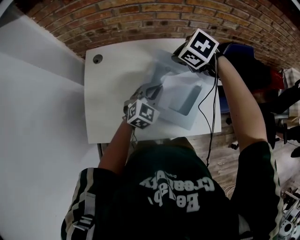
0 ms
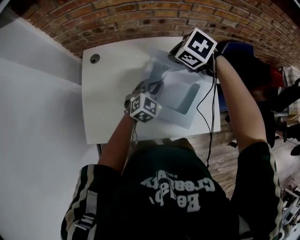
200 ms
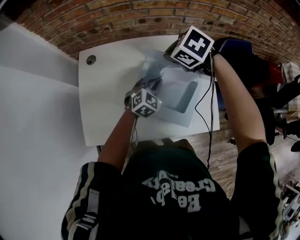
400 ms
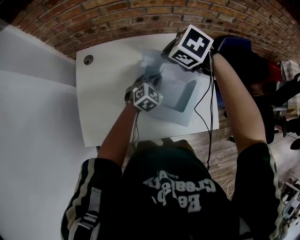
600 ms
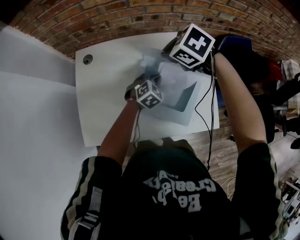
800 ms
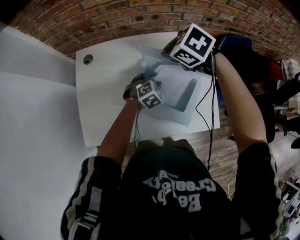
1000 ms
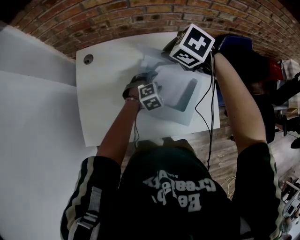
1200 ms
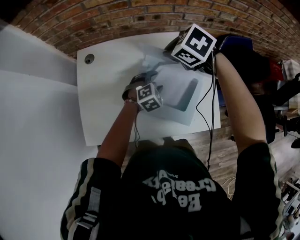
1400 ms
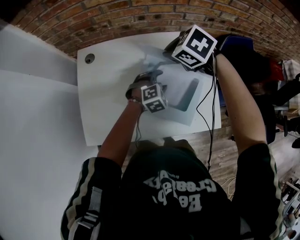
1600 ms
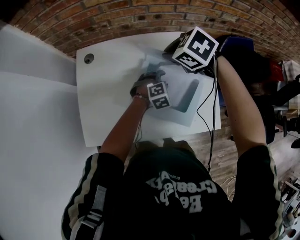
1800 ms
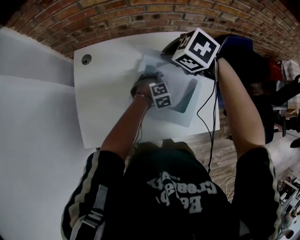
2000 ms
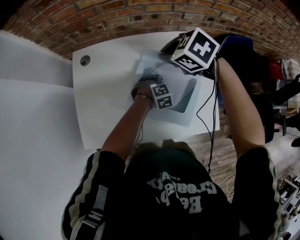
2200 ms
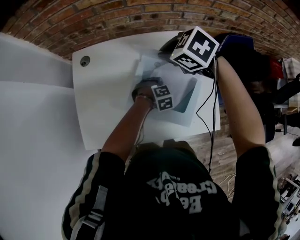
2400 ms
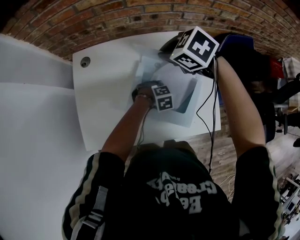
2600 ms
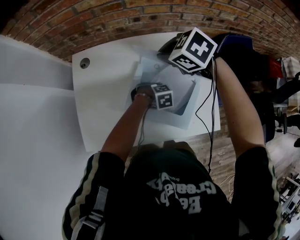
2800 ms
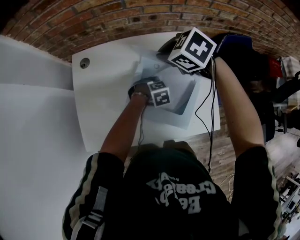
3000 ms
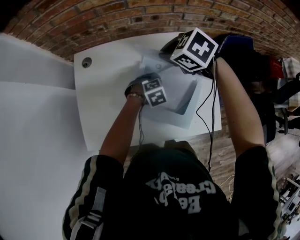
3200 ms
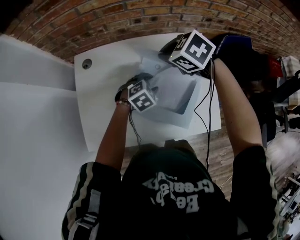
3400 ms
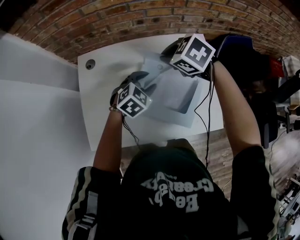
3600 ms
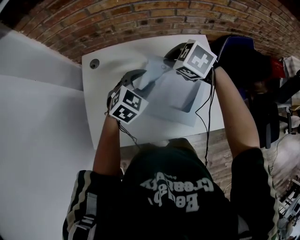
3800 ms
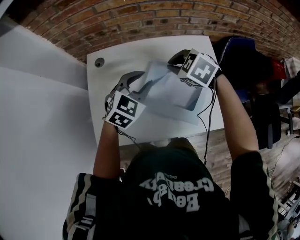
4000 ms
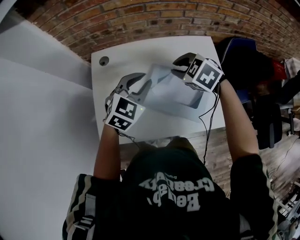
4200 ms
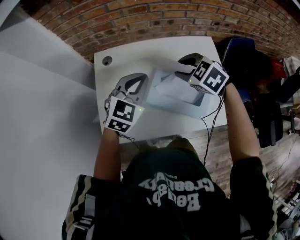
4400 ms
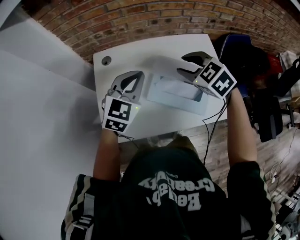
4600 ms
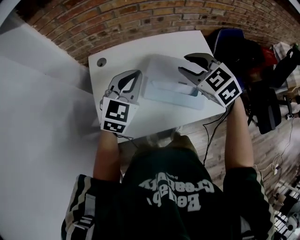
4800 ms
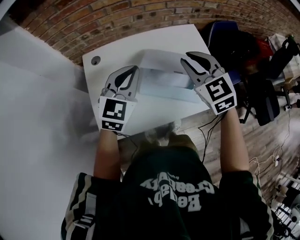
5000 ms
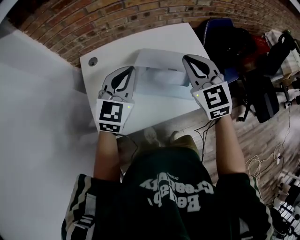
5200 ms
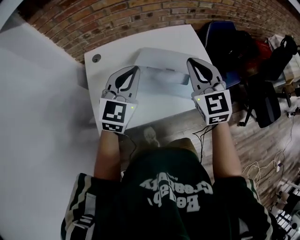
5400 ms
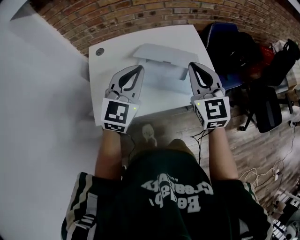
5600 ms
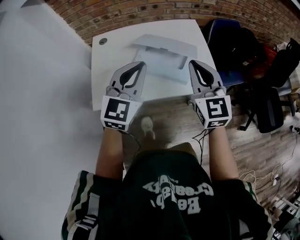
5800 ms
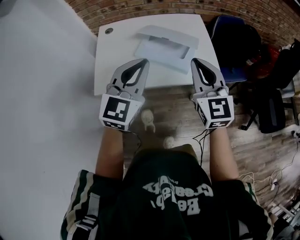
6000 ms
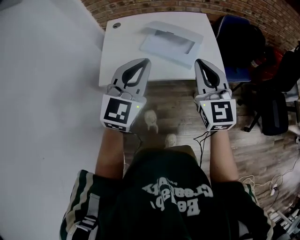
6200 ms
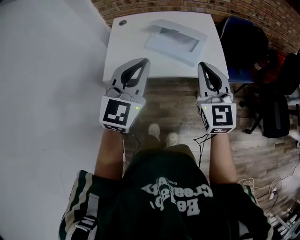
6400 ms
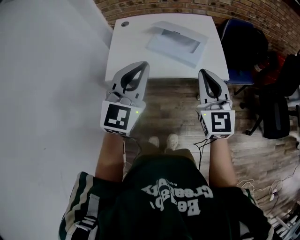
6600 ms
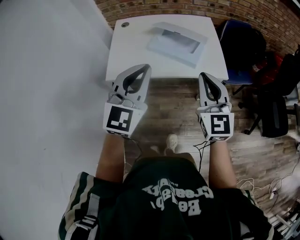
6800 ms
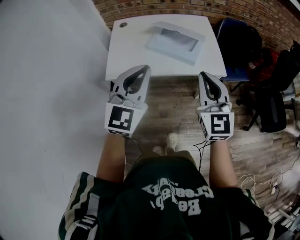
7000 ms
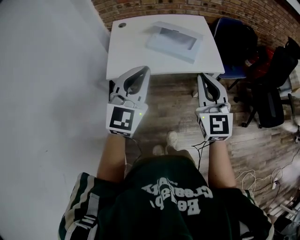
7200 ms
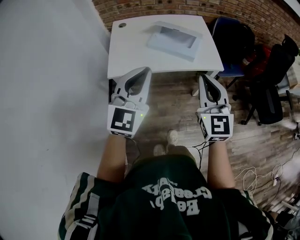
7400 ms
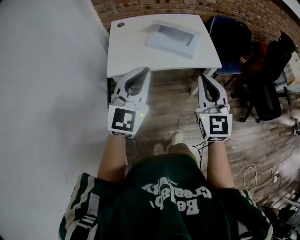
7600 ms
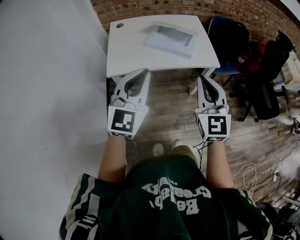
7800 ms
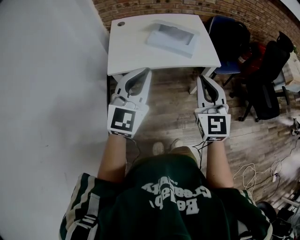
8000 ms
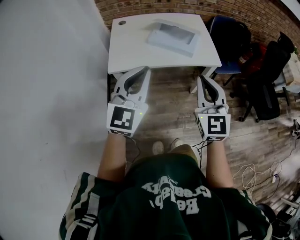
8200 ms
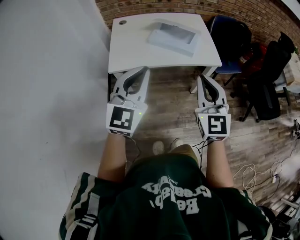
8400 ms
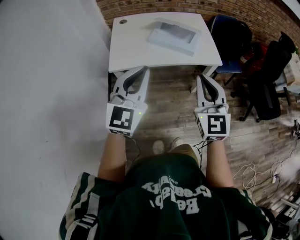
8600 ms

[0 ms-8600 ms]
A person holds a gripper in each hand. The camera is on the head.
0 ms to 1400 ms: The left gripper moves downward, roughly 10 cm, swivels approximately 30 degrees, and opens up.
1400 ms to 2800 ms: The left gripper travels downward by roughly 10 cm, rotates about 30 degrees, and closes up.
2800 ms to 4400 ms: The right gripper shifts by roughly 10 cm, and opens. Meanwhile the left gripper is displaced upward by about 30 cm, tips its fingers upward by some 50 degrees, and opens, then closes again.
4400 ms to 5800 ms: The right gripper is displaced backward, to the right and upward by about 30 cm, tips its fingers upward by roughly 50 degrees, and closes up. Meanwhile the left gripper heads backward and to the right, covering approximately 25 cm.
5800 ms to 7200 ms: The two grippers go roughly 20 cm backward.
7200 ms to 8600 ms: The two grippers go roughly 5 cm backward.

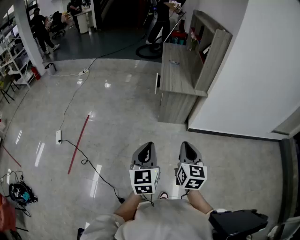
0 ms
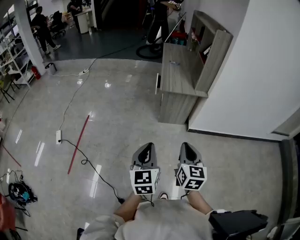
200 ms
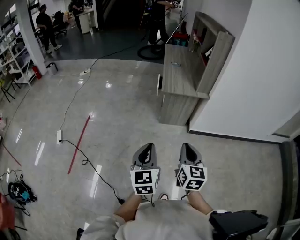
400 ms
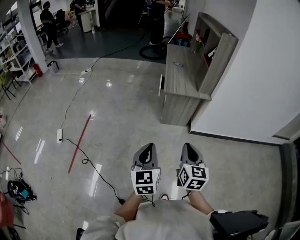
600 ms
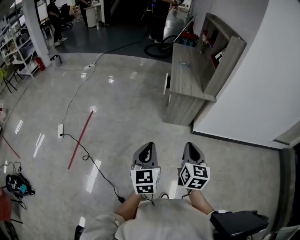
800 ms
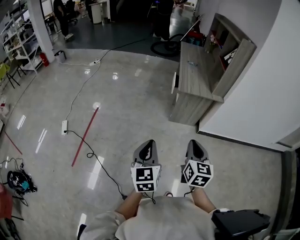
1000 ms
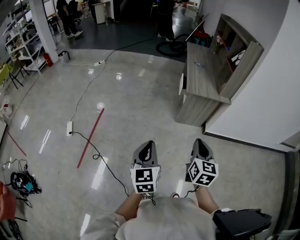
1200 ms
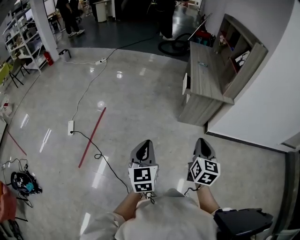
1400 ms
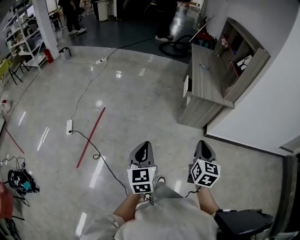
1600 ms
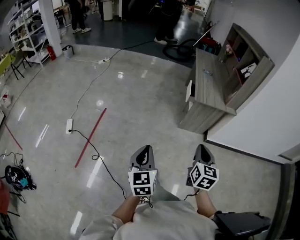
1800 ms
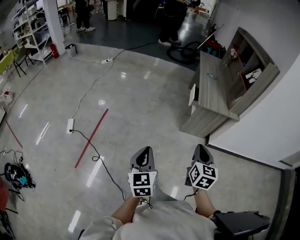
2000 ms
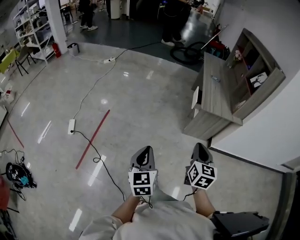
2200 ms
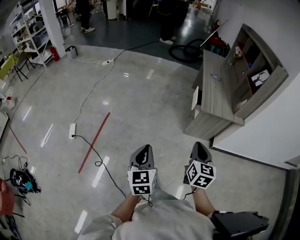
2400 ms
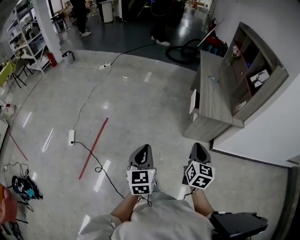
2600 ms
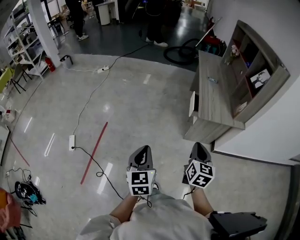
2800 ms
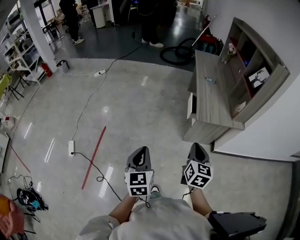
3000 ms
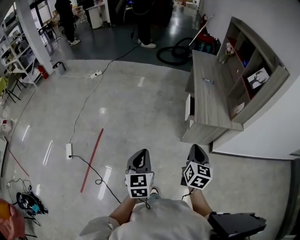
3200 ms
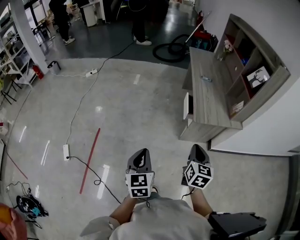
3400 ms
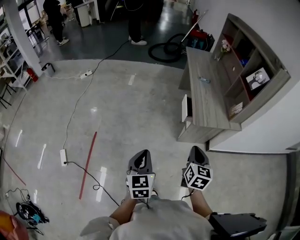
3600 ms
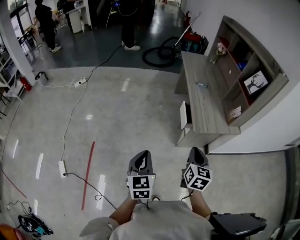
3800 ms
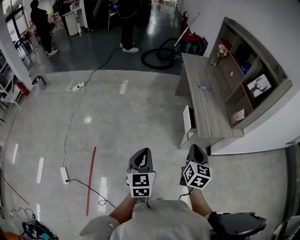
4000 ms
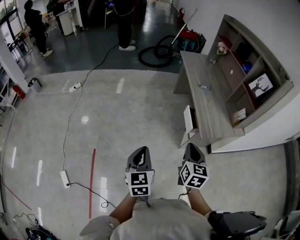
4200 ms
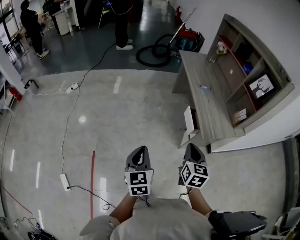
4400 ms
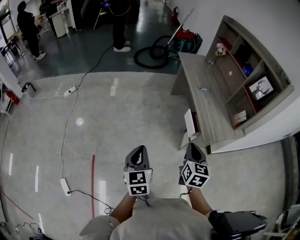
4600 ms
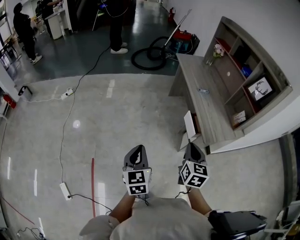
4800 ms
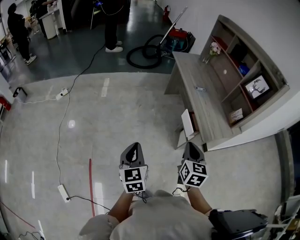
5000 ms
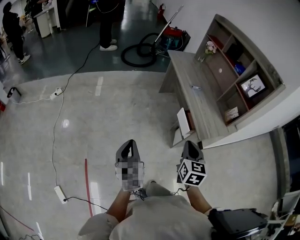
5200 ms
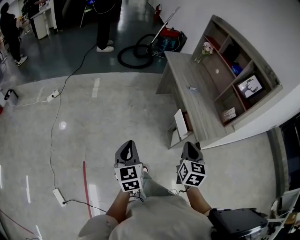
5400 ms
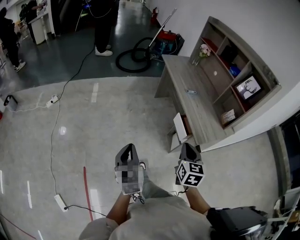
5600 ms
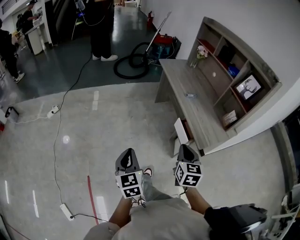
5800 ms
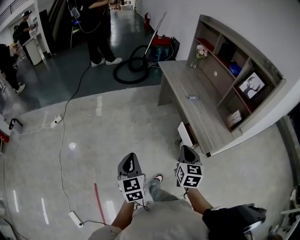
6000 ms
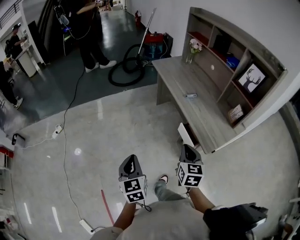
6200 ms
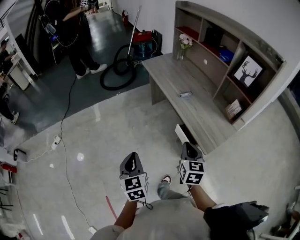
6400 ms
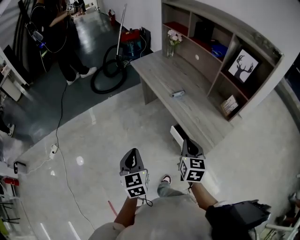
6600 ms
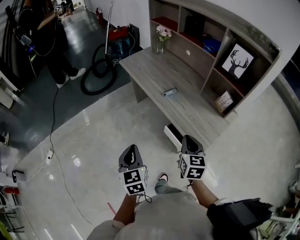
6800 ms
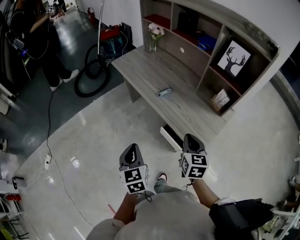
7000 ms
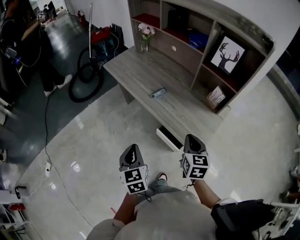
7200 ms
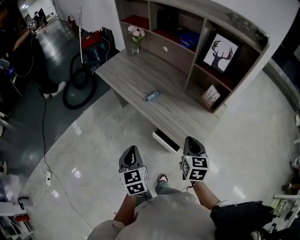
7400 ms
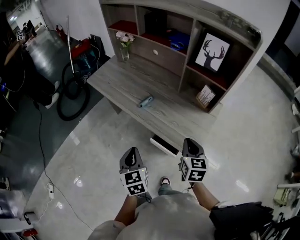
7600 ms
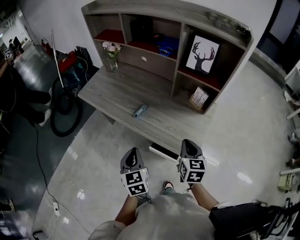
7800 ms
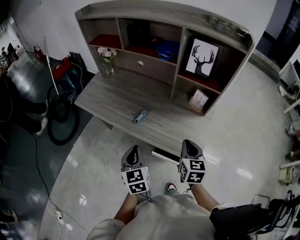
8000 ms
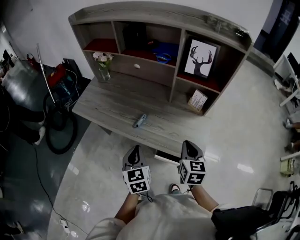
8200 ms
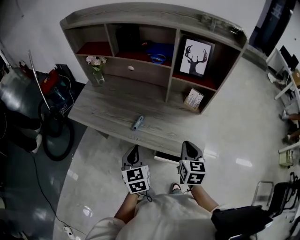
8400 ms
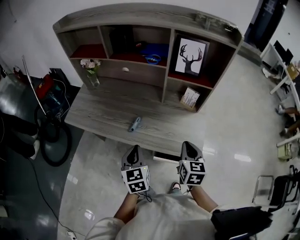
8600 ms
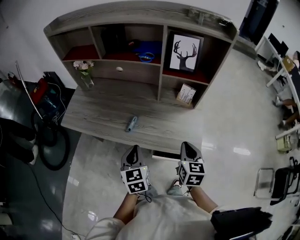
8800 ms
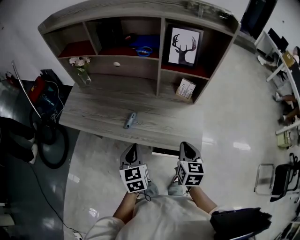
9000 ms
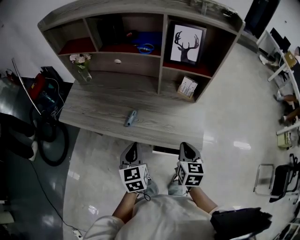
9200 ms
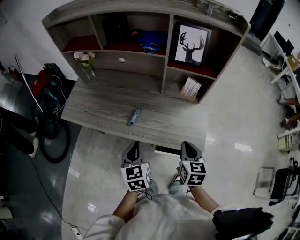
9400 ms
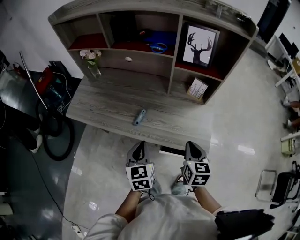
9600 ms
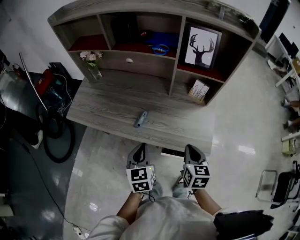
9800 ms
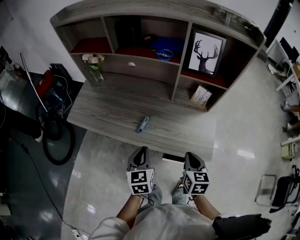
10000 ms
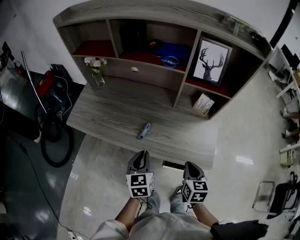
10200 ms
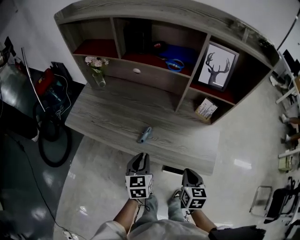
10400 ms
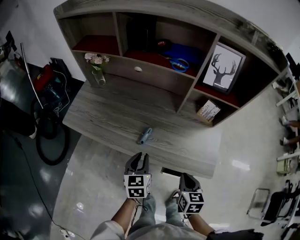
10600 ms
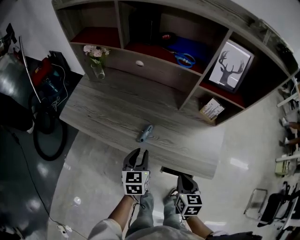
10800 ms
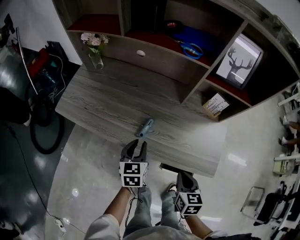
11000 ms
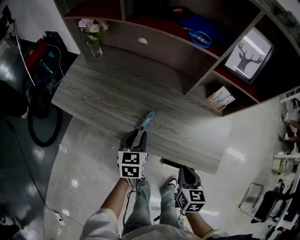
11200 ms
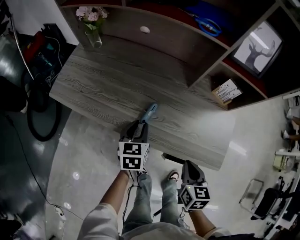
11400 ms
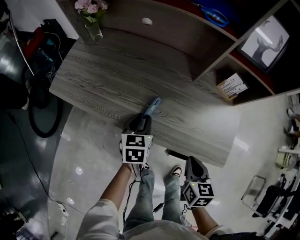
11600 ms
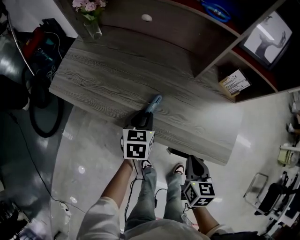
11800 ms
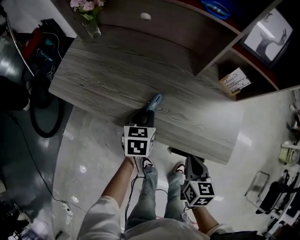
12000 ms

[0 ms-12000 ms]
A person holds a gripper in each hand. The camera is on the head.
0 ms to 1600 ms: The right gripper travels to the left and forward by some 15 cm. Meanwhile the left gripper heads to the left, covering some 25 cm.
1600 ms to 3000 ms: The two grippers go about 25 cm forward.
3000 ms to 4400 ms: Both grippers travel together forward and to the left, roughly 25 cm.
4400 ms to 6000 ms: Both grippers move forward and to the left, approximately 15 cm.
6000 ms to 7600 ms: The left gripper moves some 35 cm, and rotates approximately 40 degrees. Meanwhile the right gripper moves about 25 cm, and swivels some 30 degrees.
7600 ms to 9000 ms: The right gripper turns by approximately 30 degrees, while the left gripper shifts by approximately 15 cm, and swivels approximately 30 degrees.
9000 ms to 10400 ms: Both grippers travel together downward, about 5 cm.
10400 ms to 12000 ms: The right gripper moves downward, roughly 10 cm. The left gripper shifts roughly 15 cm downward and forward.

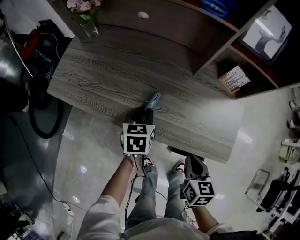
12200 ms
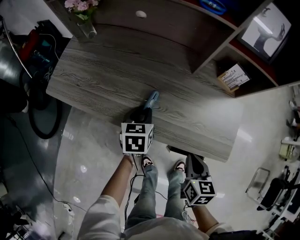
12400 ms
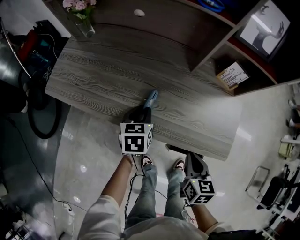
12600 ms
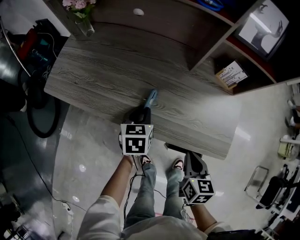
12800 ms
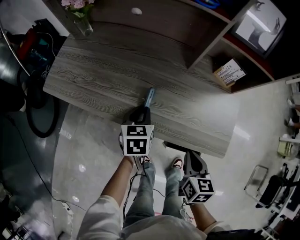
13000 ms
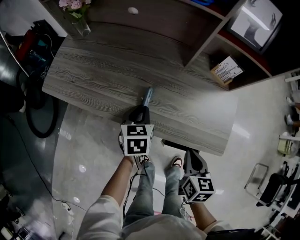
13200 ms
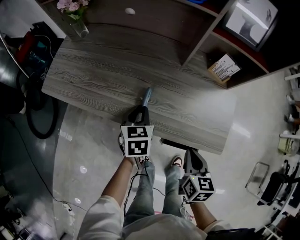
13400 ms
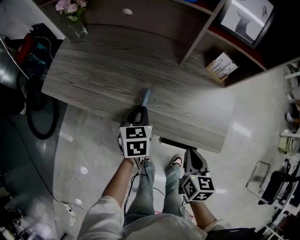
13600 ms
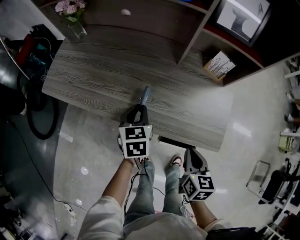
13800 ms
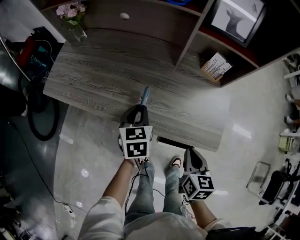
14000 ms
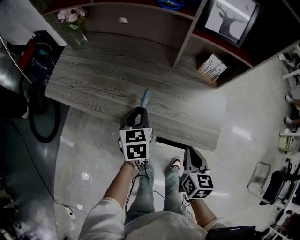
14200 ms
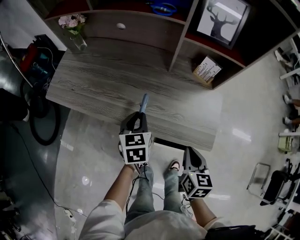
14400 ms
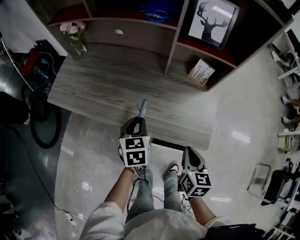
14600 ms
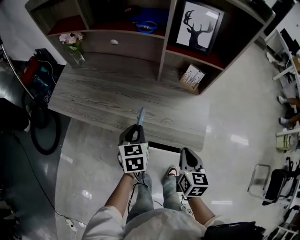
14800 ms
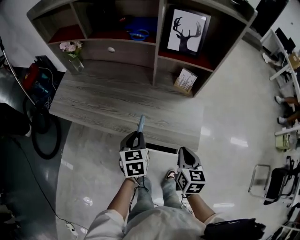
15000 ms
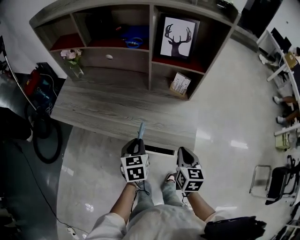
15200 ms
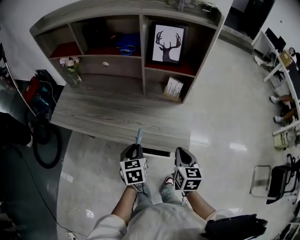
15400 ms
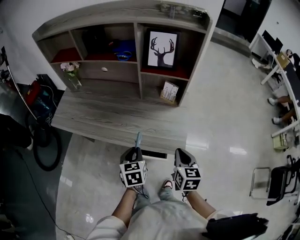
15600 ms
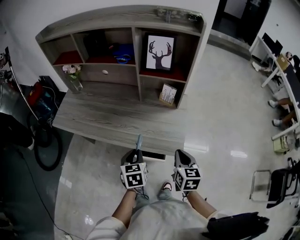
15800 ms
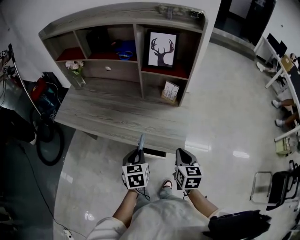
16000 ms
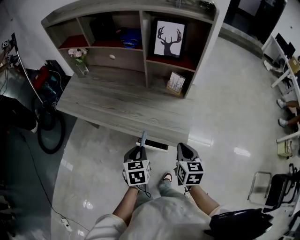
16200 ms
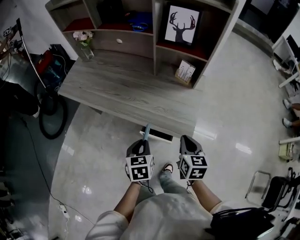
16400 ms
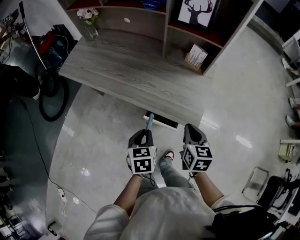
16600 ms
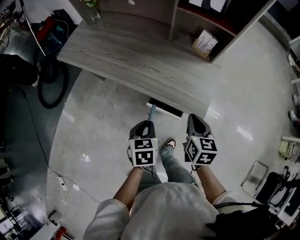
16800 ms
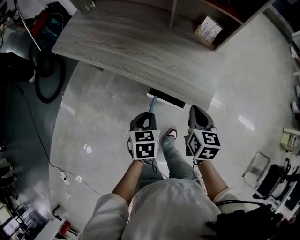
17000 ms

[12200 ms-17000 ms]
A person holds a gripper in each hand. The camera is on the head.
12200 ms to 13800 ms: The right gripper ends up about 5 cm from where it was; the left gripper moves about 5 cm.
13800 ms to 15400 ms: The left gripper is displaced backward, to the right and upward by approximately 20 cm, while the right gripper moves upward and to the right, some 15 cm.
15400 ms to 17000 ms: The left gripper is displaced backward and downward by about 15 cm; the right gripper moves downward, roughly 5 cm.
